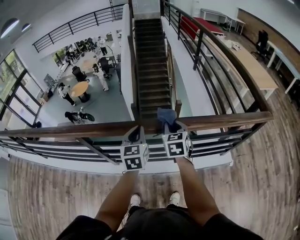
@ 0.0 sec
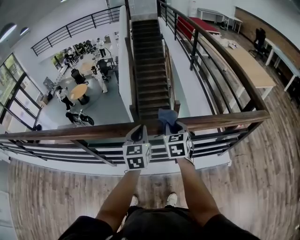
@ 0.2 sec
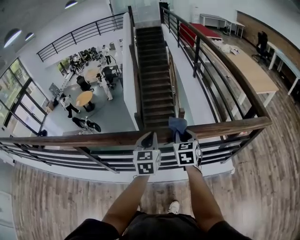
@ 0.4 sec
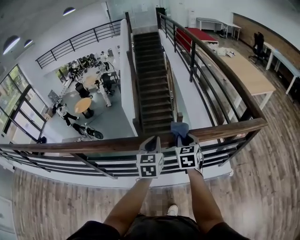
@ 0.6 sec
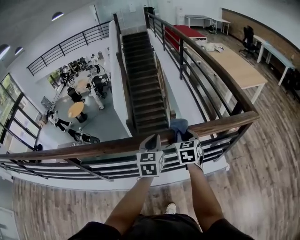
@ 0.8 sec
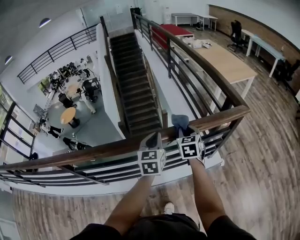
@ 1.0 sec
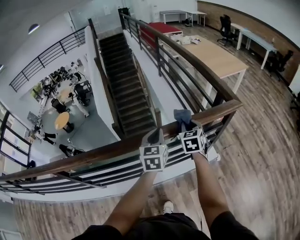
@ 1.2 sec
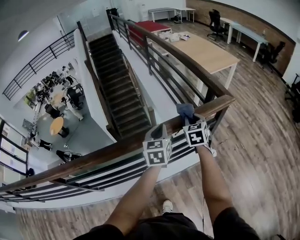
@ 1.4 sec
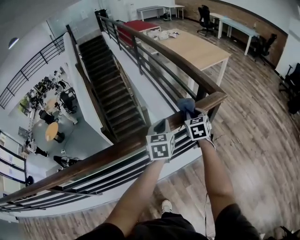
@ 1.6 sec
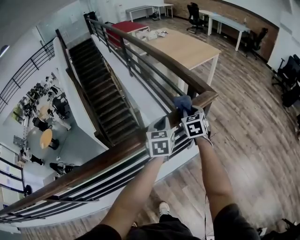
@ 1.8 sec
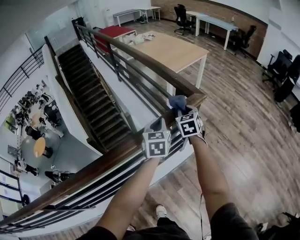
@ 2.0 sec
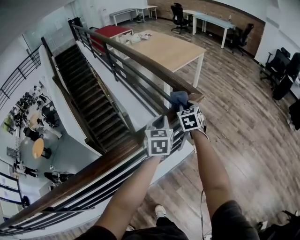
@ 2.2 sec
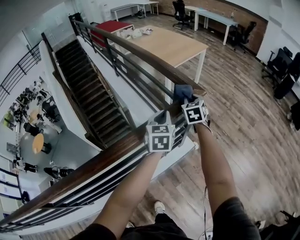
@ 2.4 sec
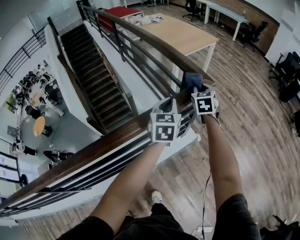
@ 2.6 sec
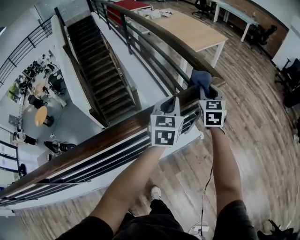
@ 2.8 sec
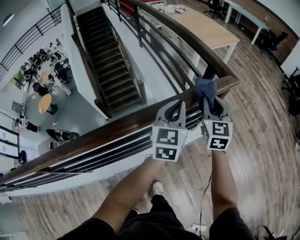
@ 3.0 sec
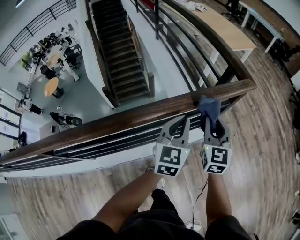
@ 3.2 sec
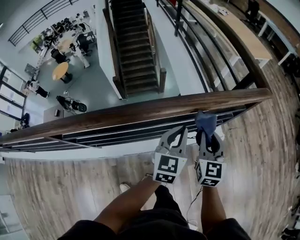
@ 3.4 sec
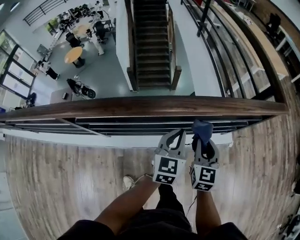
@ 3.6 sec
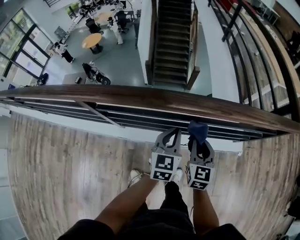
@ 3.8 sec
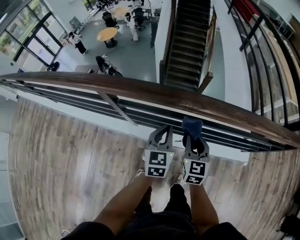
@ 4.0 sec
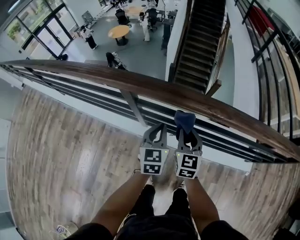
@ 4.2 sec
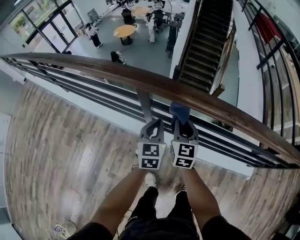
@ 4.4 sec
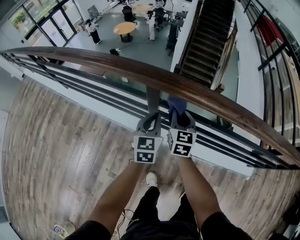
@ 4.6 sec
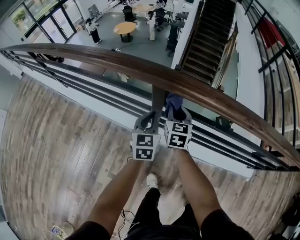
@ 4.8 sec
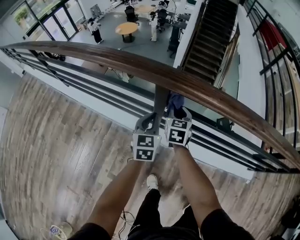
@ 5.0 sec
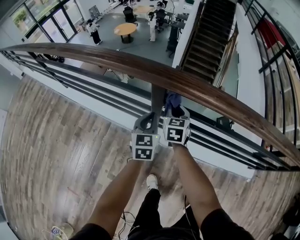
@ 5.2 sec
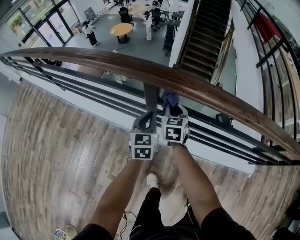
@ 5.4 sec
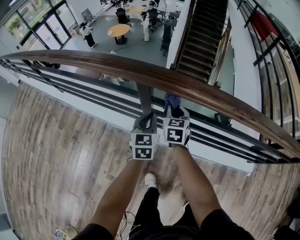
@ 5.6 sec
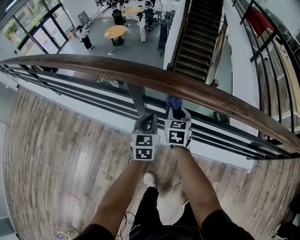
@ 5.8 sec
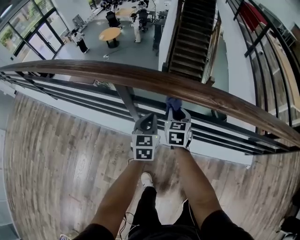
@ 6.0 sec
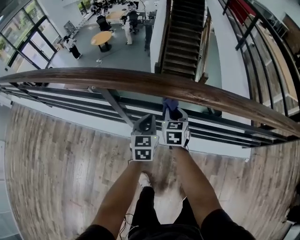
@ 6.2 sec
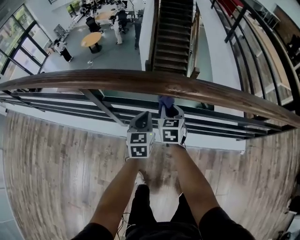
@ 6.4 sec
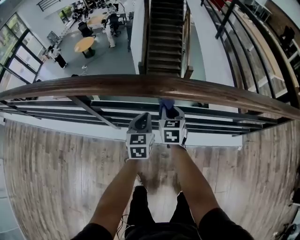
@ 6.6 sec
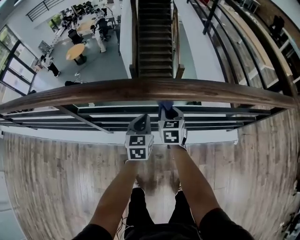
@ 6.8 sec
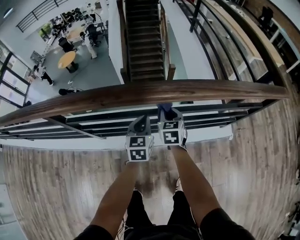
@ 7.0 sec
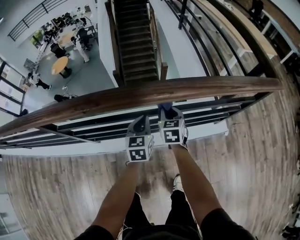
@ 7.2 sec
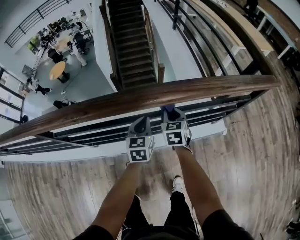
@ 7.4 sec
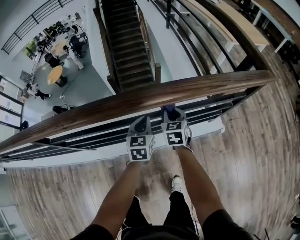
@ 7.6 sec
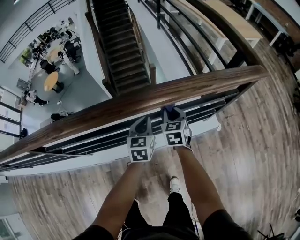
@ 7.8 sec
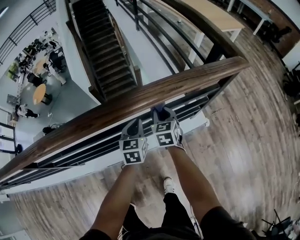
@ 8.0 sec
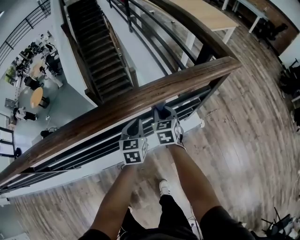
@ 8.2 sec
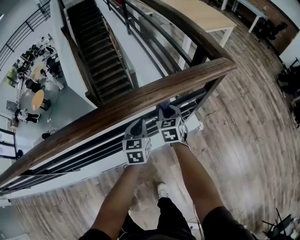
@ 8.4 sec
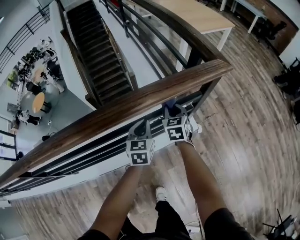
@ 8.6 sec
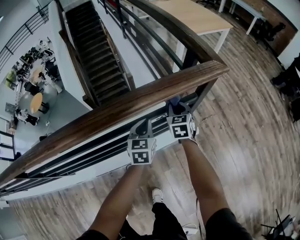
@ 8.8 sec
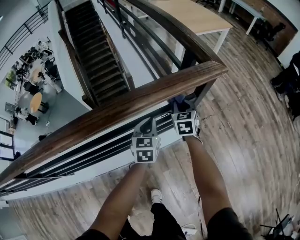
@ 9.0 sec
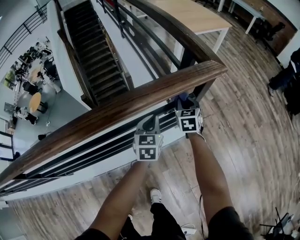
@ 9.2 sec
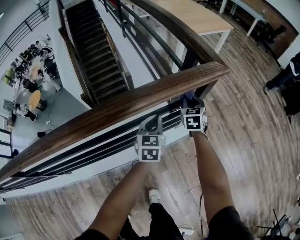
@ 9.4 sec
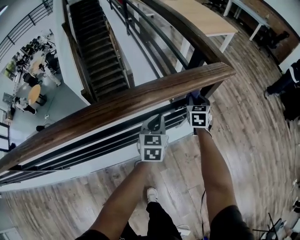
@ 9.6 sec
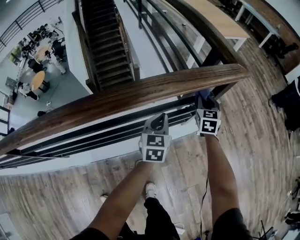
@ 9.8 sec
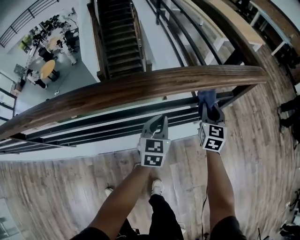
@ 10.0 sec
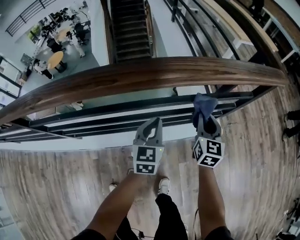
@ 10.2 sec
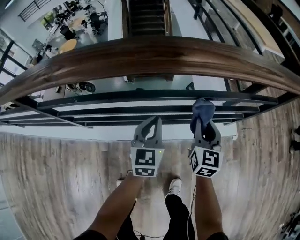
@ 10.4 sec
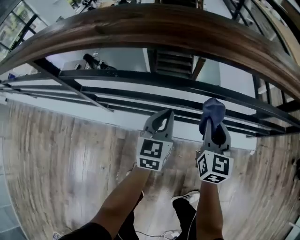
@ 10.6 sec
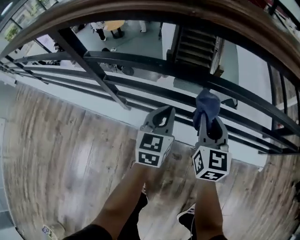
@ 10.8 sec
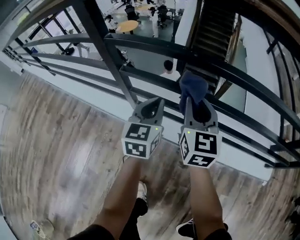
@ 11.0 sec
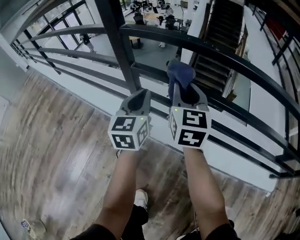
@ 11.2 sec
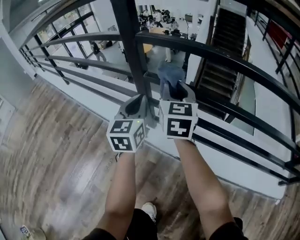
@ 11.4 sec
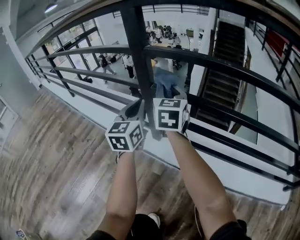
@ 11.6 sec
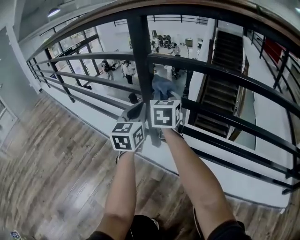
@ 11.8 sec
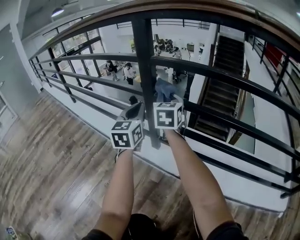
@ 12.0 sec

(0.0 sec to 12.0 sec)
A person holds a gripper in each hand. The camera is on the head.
0.0 sec - 1.6 sec: The pair of grippers is taken approximately 50 cm. The right gripper rotates approximately 30 degrees. The left gripper rotates roughly 30 degrees.
1.6 sec - 3.0 sec: The right gripper shifts some 5 cm upward, and moves approximately 15 cm to the right and comes back; the left gripper moves to the right, approximately 5 cm.
3.0 sec - 4.4 sec: The pair of grippers is taken some 90 cm. The left gripper rotates some 50 degrees; the right gripper rotates about 50 degrees.
4.4 sec - 6.0 sec: Both grippers move downward, about 5 cm. The left gripper travels to the left and back again, approximately 10 cm each way; the right gripper reaches about 10 cm to the left, then returns.
6.0 sec - 7.6 sec: The two grippers travel together, to the right, approximately 60 cm. The left gripper rotates about 20 degrees.
7.6 sec - 9.0 sec: The grippers both shift to the right by about 40 cm.
9.0 sec - 10.4 sec: Both grippers are carried to the left and backward, about 40 cm. The left gripper rotates approximately 20 degrees; the right gripper swivels about 20 degrees.
10.4 sec - 12.0 sec: The pair of grippers is taken roughly 70 cm. The right gripper turns by some 40 degrees; the left gripper swivels about 40 degrees.

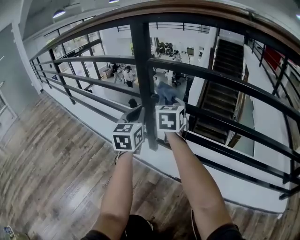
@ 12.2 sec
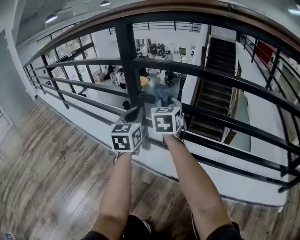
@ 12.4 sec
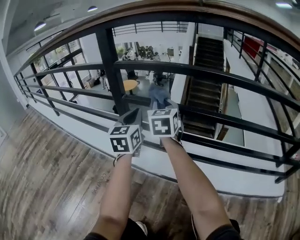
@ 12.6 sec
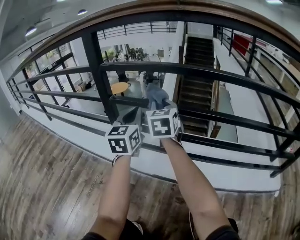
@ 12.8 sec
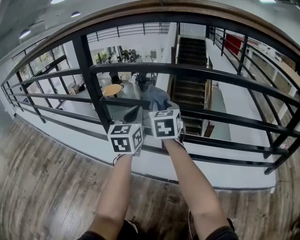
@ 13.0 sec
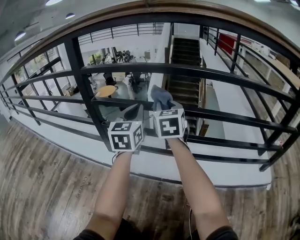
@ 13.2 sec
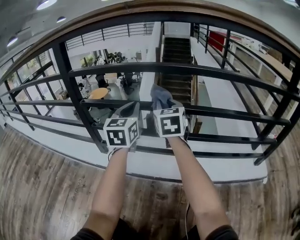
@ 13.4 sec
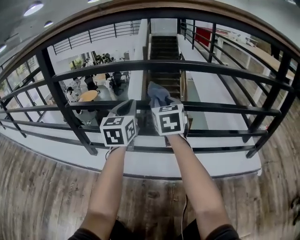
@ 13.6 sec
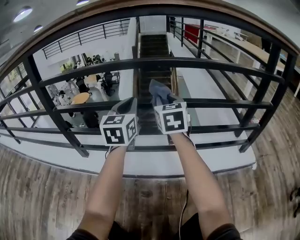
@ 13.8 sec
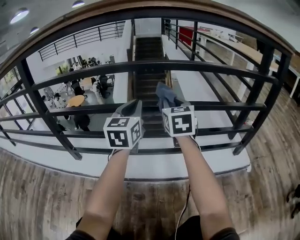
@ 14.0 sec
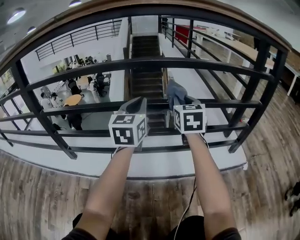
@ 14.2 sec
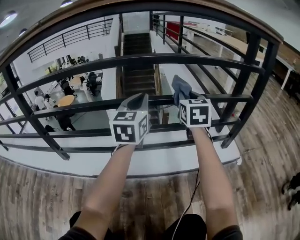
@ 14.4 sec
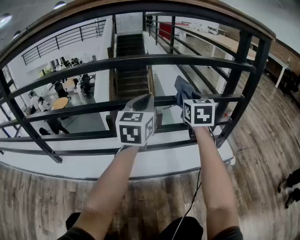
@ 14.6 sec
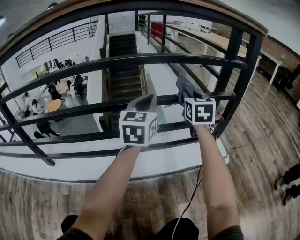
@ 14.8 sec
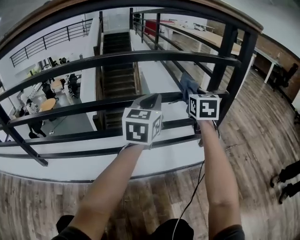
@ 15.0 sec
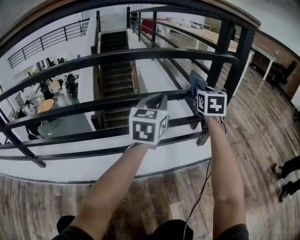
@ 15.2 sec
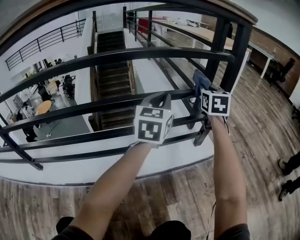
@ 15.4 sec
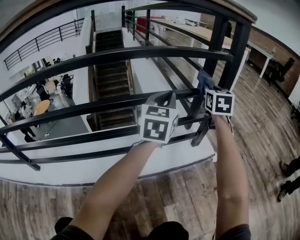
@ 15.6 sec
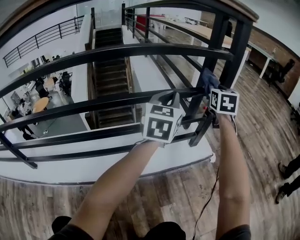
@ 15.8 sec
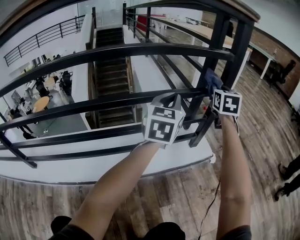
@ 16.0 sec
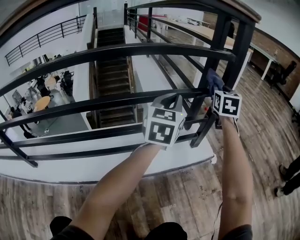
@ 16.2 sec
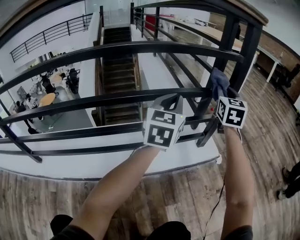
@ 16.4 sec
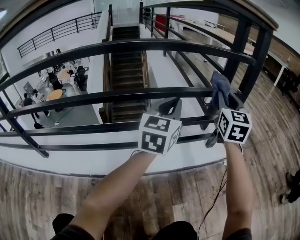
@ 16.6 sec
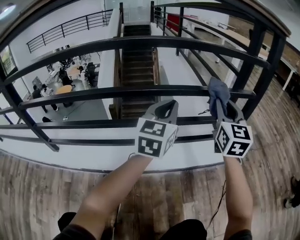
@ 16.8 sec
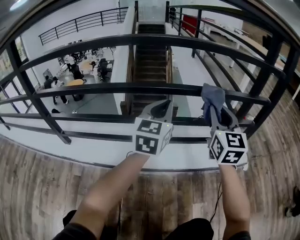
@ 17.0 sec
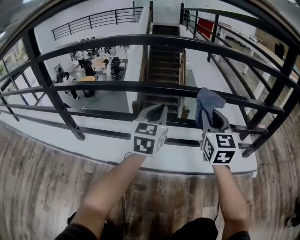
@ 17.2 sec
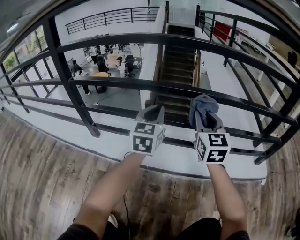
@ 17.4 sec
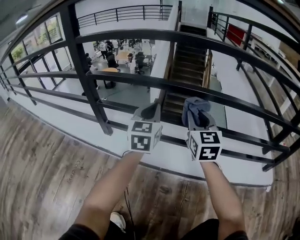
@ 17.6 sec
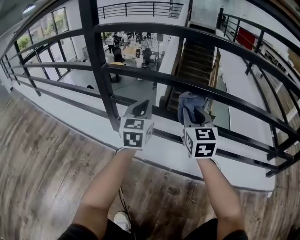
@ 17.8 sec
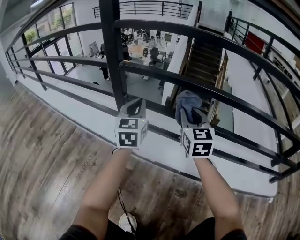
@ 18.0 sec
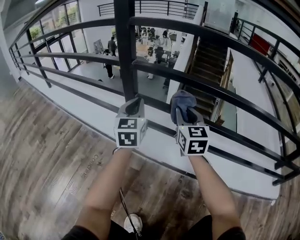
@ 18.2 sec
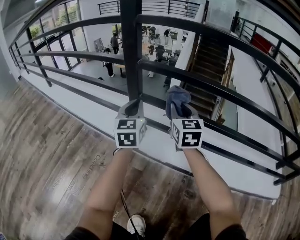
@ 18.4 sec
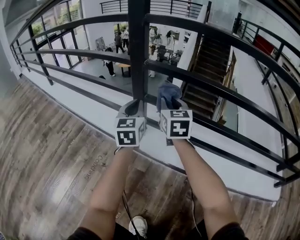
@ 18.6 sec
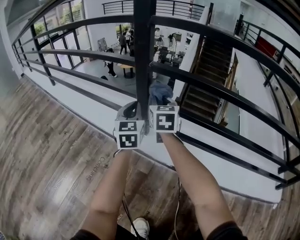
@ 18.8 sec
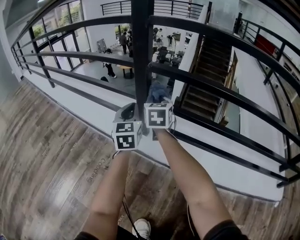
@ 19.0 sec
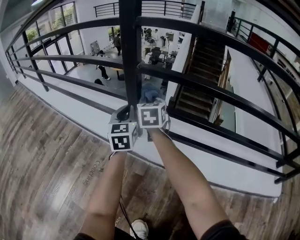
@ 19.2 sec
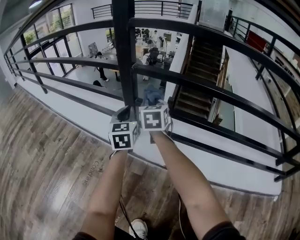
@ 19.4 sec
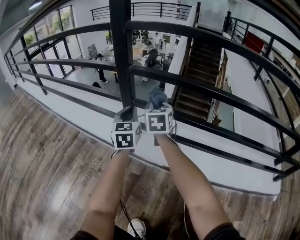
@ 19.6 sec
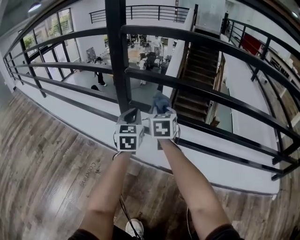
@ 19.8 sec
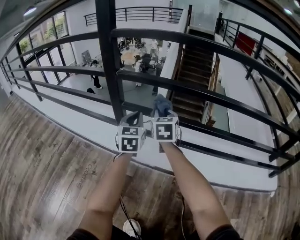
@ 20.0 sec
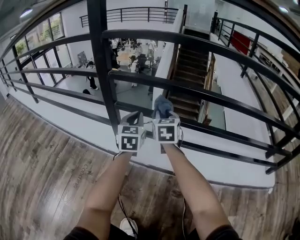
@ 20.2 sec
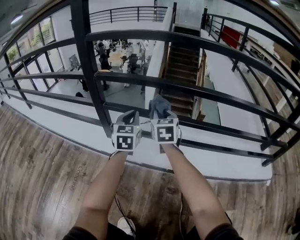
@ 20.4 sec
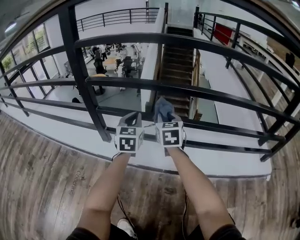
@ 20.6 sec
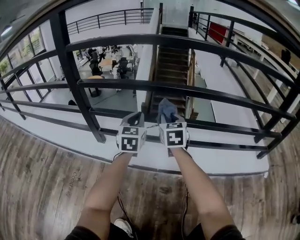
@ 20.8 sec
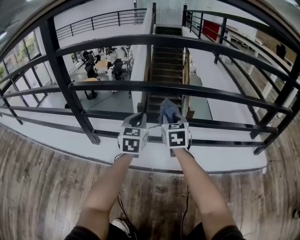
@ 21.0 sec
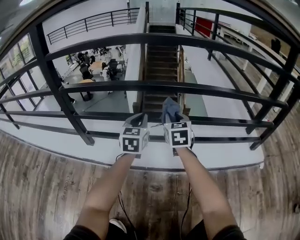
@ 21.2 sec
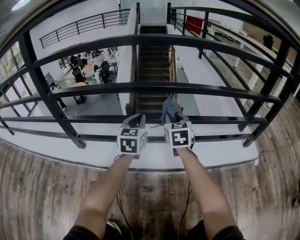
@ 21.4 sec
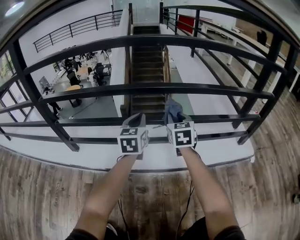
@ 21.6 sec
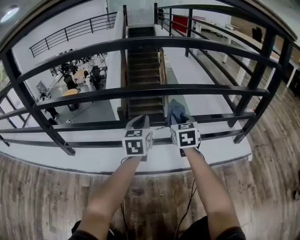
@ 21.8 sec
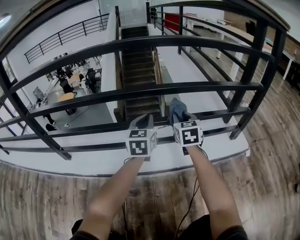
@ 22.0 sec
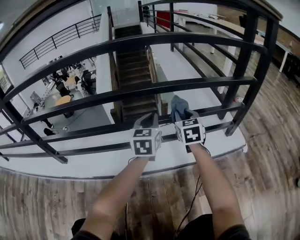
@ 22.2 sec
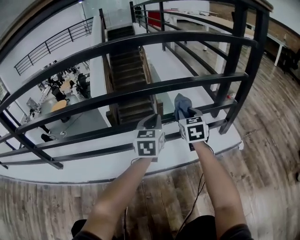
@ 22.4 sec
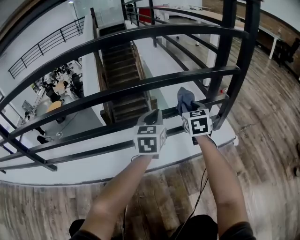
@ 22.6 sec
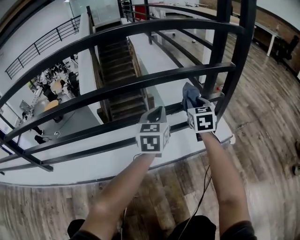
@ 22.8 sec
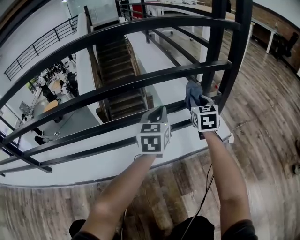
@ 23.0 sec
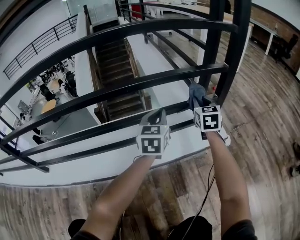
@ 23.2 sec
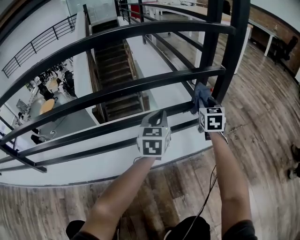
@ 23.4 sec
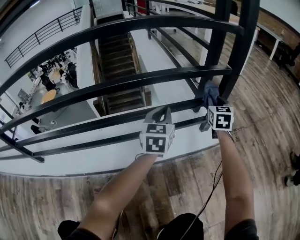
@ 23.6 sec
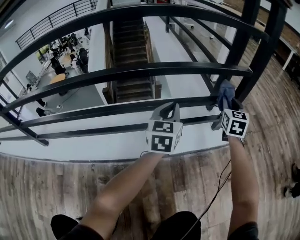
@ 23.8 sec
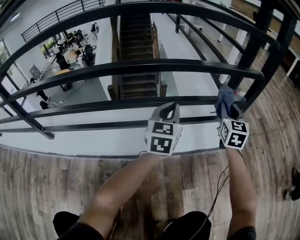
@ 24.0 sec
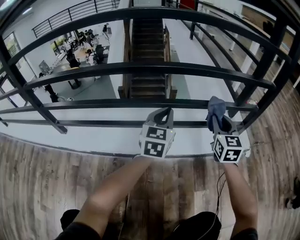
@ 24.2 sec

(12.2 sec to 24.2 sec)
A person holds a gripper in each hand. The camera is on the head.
12.2 sec - 13.8 sec: The pair of grippers is taken to the right, roughly 50 cm. The left gripper turns by about 30 degrees.
13.8 sec - 15.2 sec: The two grippers travel together, roughly 50 cm. The right gripper swivels about 30 degrees. Meanwhile the left gripper rotates approximately 30 degrees.
15.2 sec - 16.6 sec: The right gripper reaches roughly 10 cm to the right, then returns; the left gripper goes to the right and returns, about 10 cm each way.
16.6 sec - 18.2 sec: The pair of grippers is taken approximately 90 cm. The left gripper swivels approximately 50 degrees, while the right gripper turns by about 50 degrees.
18.2 sec - 19.8 sec: The right gripper goes approximately 5 cm forward, and reaches some 15 cm to the left, then returns. The left gripper travels to the left and back again, about 10 cm each way.
19.8 sec - 21.2 sec: The two grippers go about 35 cm to the right. The left gripper rotates about 20 degrees.
21.2 sec - 22.6 sec: The pair of grippers is taken to the right, roughly 50 cm.
22.6 sec - 24.2 sec: The left gripper goes some 15 cm to the left and backward, while the right gripper is displaced backward by approximately 10 cm, and travels to the right and back again, roughly 20 cm each way.
